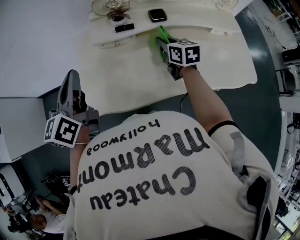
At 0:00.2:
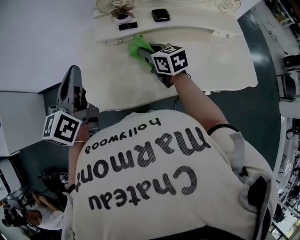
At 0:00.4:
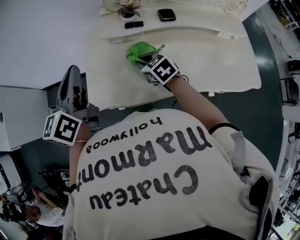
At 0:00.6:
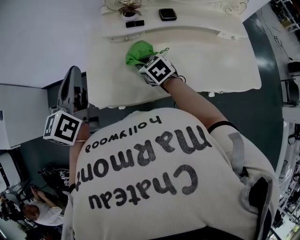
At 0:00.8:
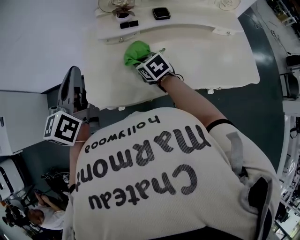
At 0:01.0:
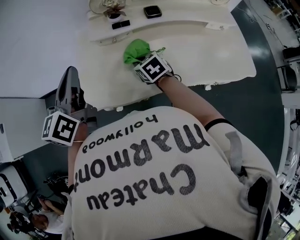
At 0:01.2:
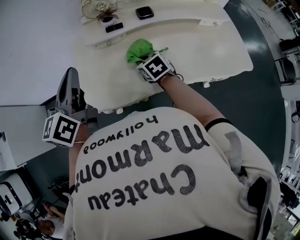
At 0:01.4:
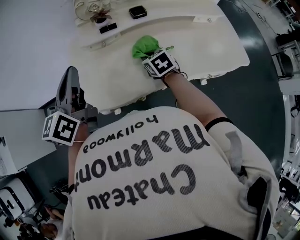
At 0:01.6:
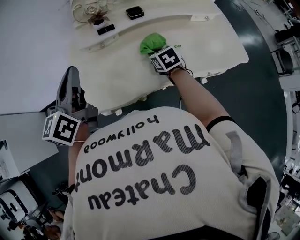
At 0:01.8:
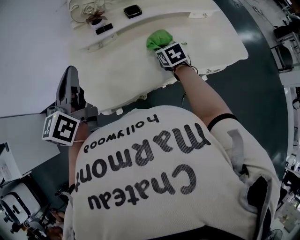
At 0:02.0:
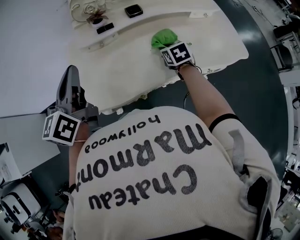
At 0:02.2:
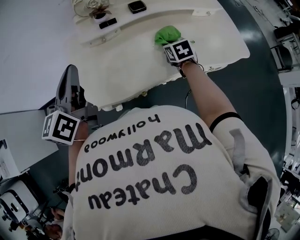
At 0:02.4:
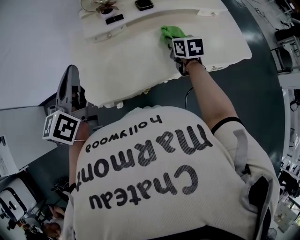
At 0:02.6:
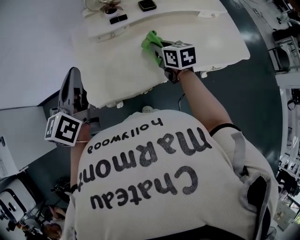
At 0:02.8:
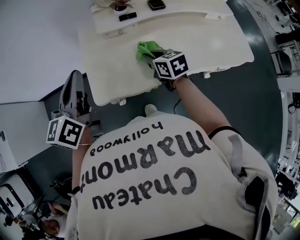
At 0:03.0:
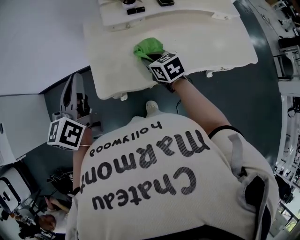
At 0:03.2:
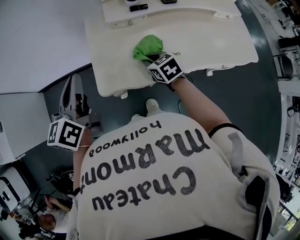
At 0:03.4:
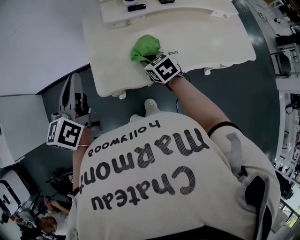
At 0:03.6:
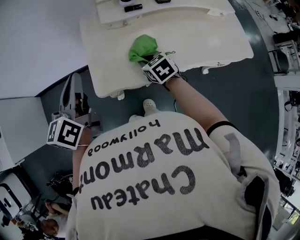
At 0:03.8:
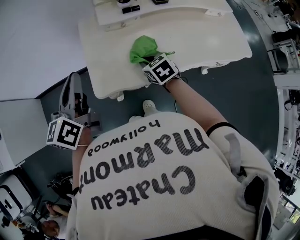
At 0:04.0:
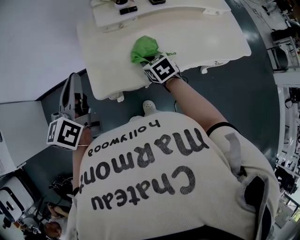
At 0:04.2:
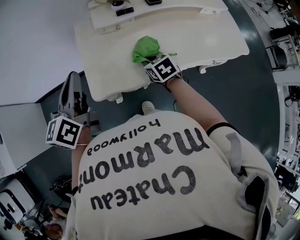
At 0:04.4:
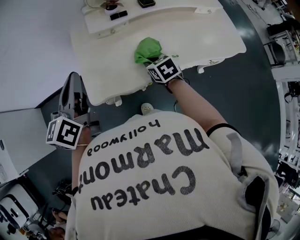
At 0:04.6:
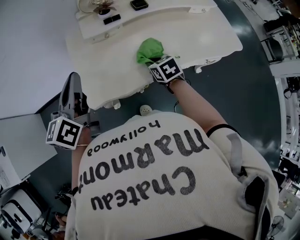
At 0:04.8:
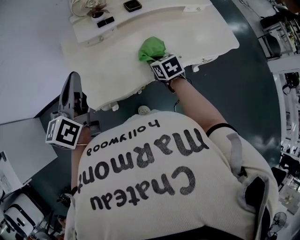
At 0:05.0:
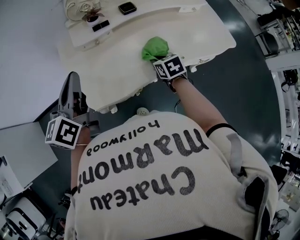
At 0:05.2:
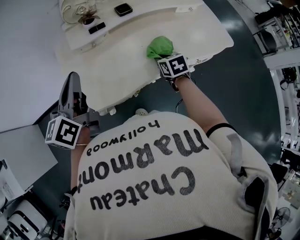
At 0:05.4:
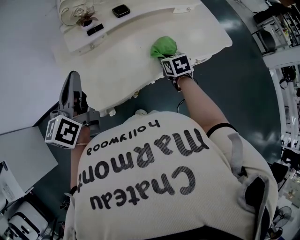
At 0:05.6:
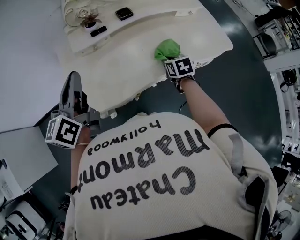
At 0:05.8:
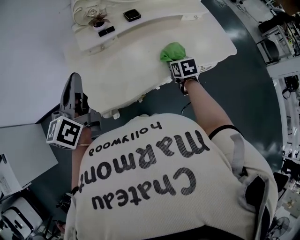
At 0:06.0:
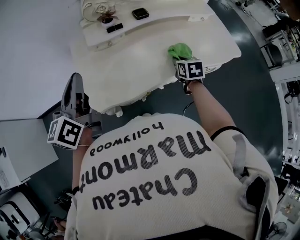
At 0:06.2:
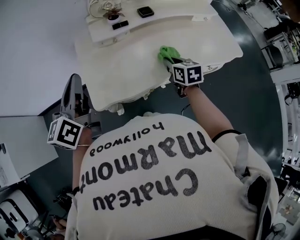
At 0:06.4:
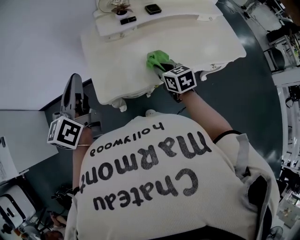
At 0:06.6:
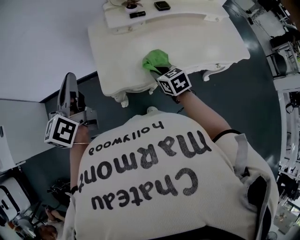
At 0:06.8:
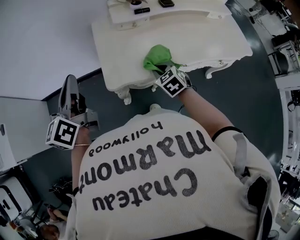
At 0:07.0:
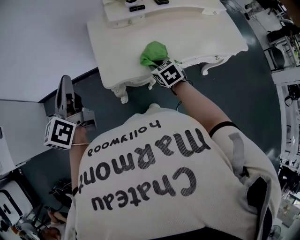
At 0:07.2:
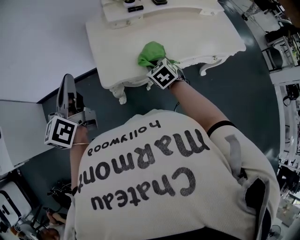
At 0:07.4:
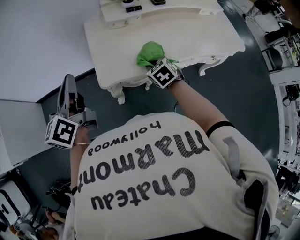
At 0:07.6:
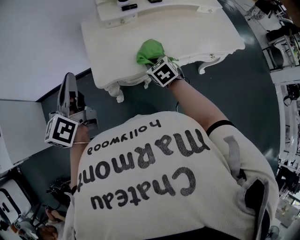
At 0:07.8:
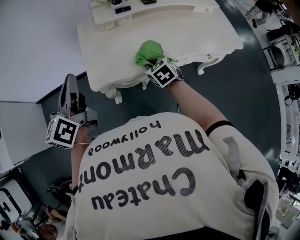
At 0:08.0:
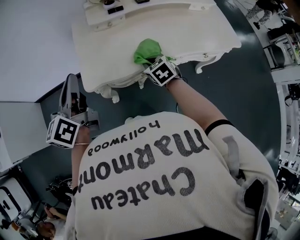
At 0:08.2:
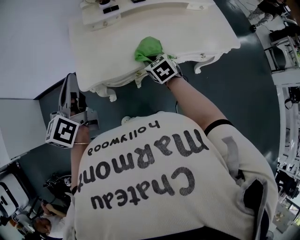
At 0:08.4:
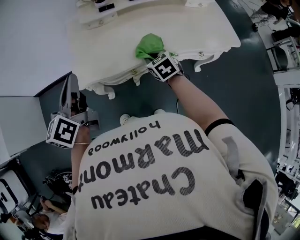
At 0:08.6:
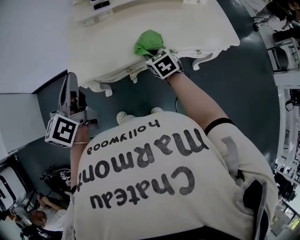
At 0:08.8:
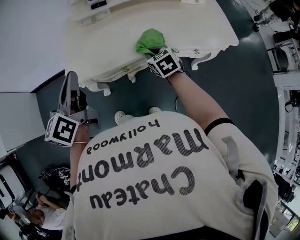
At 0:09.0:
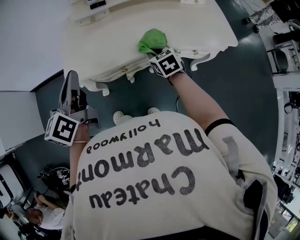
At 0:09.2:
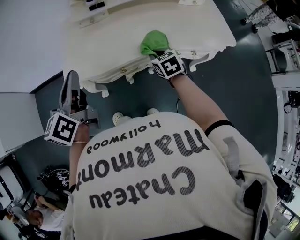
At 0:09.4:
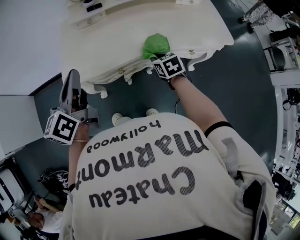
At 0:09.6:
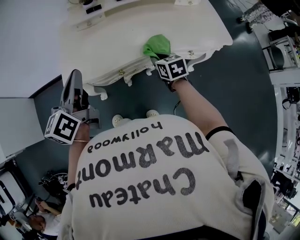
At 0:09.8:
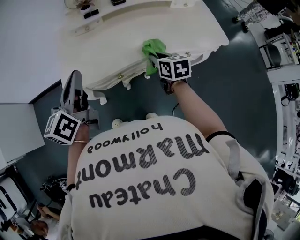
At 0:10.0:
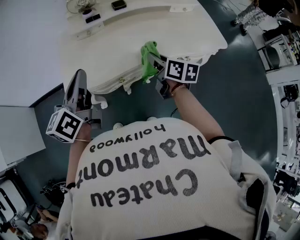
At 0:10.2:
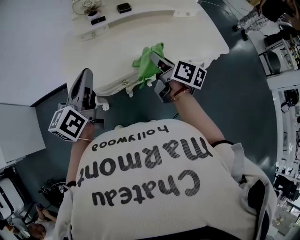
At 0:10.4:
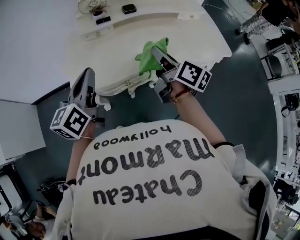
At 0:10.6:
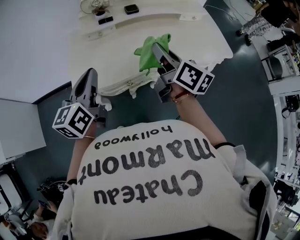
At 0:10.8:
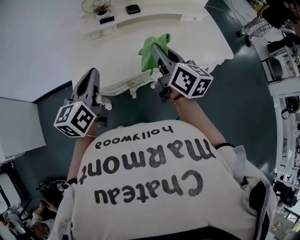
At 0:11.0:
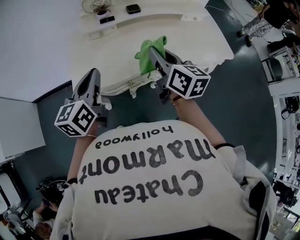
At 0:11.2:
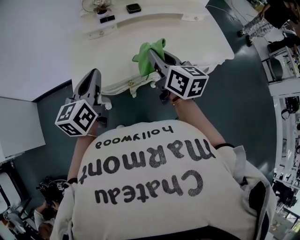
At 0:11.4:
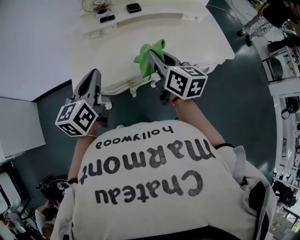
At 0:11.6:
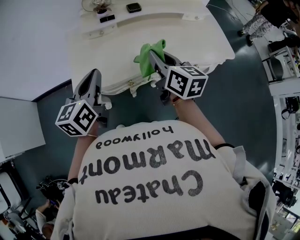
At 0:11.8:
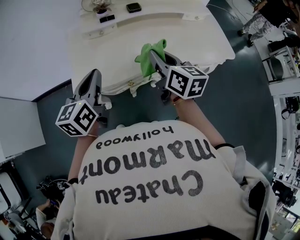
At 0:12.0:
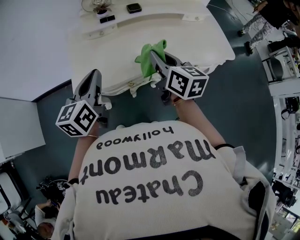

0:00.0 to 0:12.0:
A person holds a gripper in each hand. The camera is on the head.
0:00.0 to 0:01.6: The left gripper is displaced to the right by roughly 5 cm. The right gripper travels backward and downward by roughly 10 cm, reaches some 15 cm to the left, then returns, and turns by approximately 20 degrees.
0:01.6 to 0:03.0: Both grippers travel together to the left, some 15 cm.
0:03.0 to 0:04.4: The right gripper travels to the right by approximately 5 cm.
0:04.4 to 0:06.0: The right gripper heads to the right, covering about 15 cm, and rotates roughly 30 degrees. Meanwhile the left gripper travels to the right and back again, some 10 cm each way.
0:06.0 to 0:07.6: The right gripper is displaced to the left by about 20 cm, and rotates roughly 30 degrees. The left gripper moves to the left and backward, approximately 15 cm.
0:07.6 to 0:09.0: The two grippers go roughly 15 cm to the right.
0:09.0 to 0:10.4: The right gripper heads upward, covering roughly 20 cm, and points its fingers roughly 40 degrees further upward.
0:10.4 to 0:12.0: The right gripper turns by about 30 degrees.

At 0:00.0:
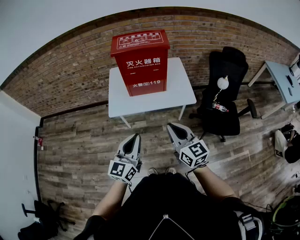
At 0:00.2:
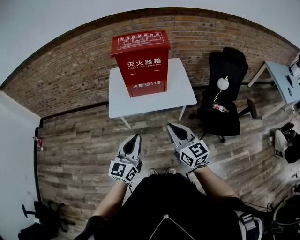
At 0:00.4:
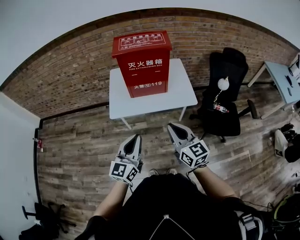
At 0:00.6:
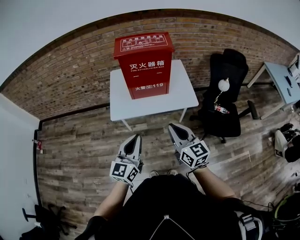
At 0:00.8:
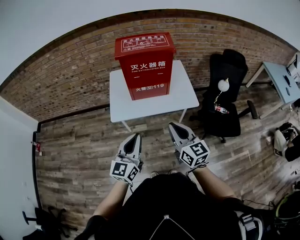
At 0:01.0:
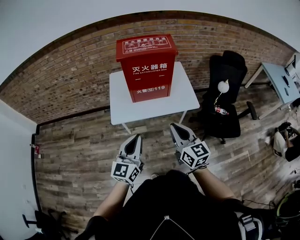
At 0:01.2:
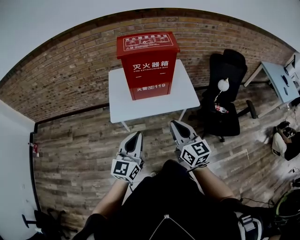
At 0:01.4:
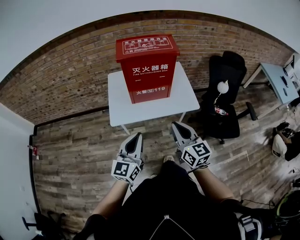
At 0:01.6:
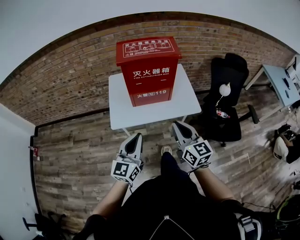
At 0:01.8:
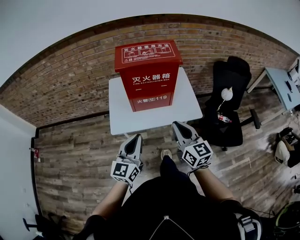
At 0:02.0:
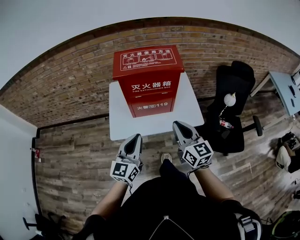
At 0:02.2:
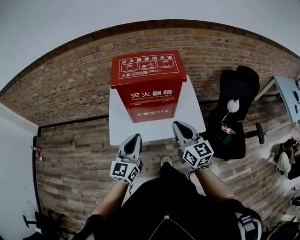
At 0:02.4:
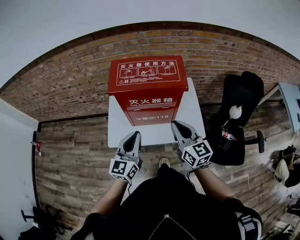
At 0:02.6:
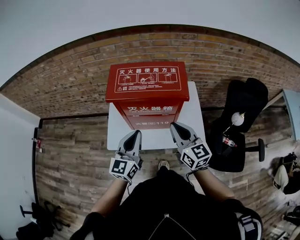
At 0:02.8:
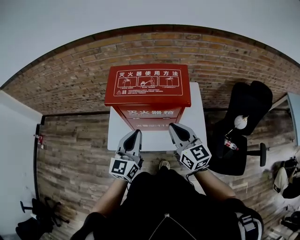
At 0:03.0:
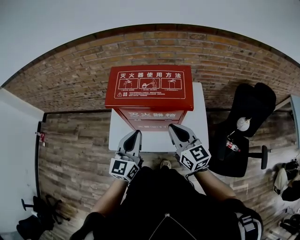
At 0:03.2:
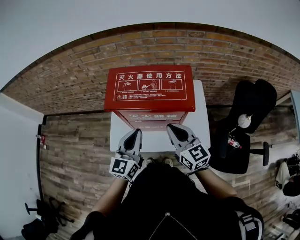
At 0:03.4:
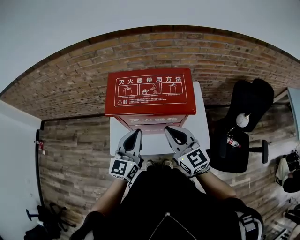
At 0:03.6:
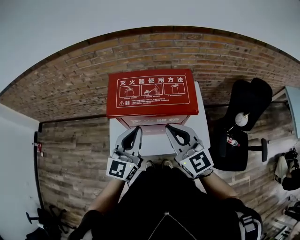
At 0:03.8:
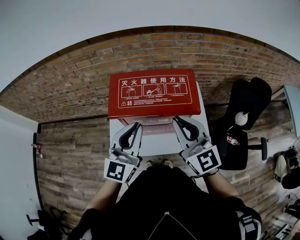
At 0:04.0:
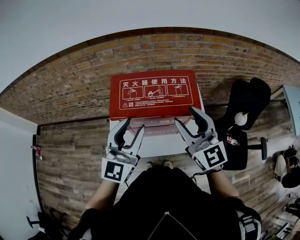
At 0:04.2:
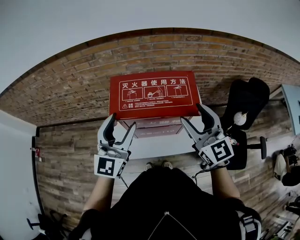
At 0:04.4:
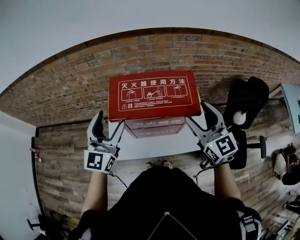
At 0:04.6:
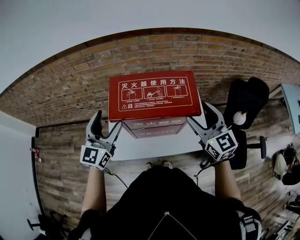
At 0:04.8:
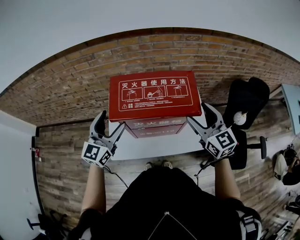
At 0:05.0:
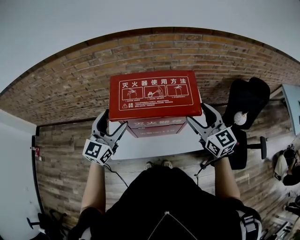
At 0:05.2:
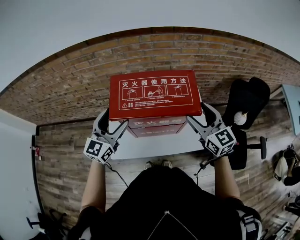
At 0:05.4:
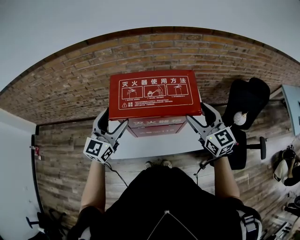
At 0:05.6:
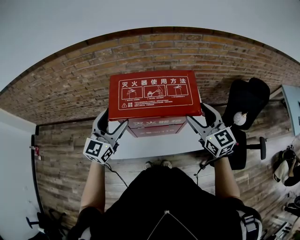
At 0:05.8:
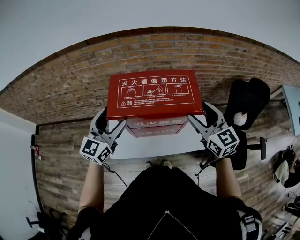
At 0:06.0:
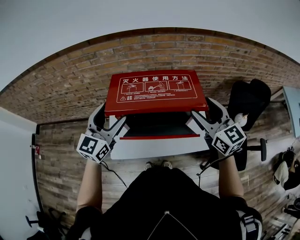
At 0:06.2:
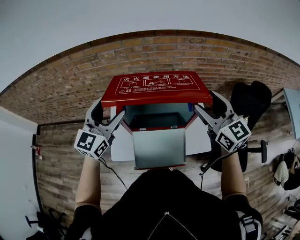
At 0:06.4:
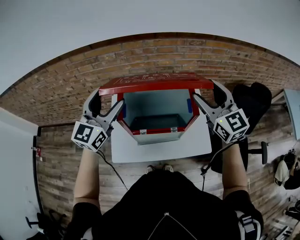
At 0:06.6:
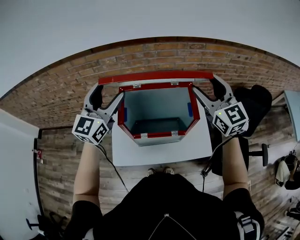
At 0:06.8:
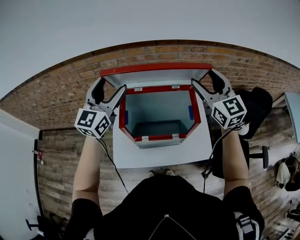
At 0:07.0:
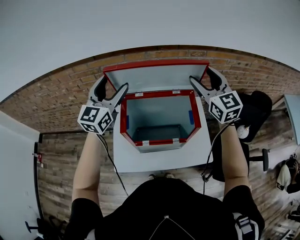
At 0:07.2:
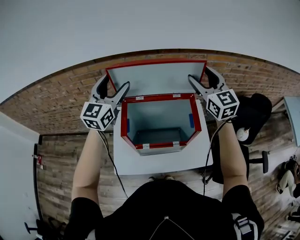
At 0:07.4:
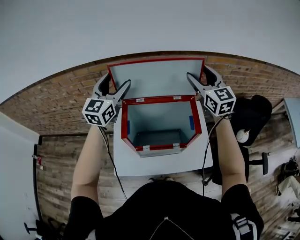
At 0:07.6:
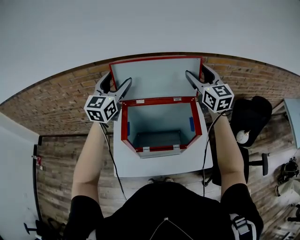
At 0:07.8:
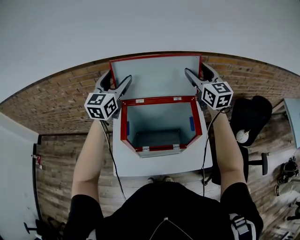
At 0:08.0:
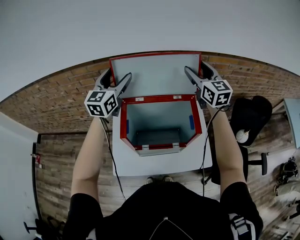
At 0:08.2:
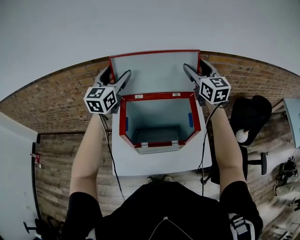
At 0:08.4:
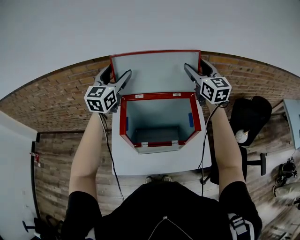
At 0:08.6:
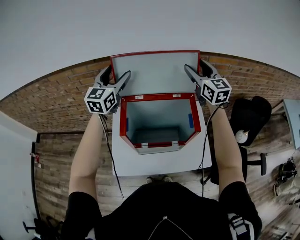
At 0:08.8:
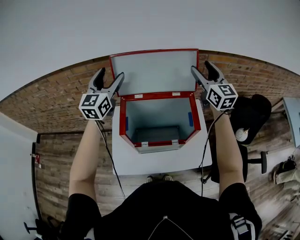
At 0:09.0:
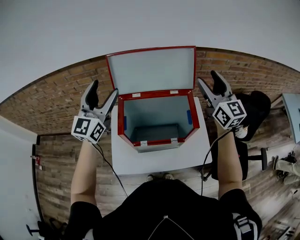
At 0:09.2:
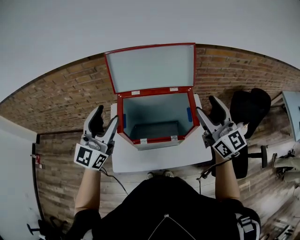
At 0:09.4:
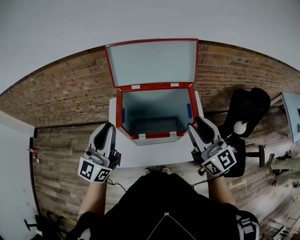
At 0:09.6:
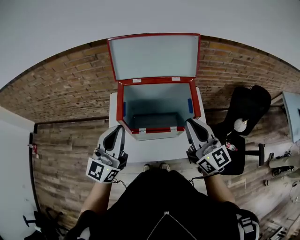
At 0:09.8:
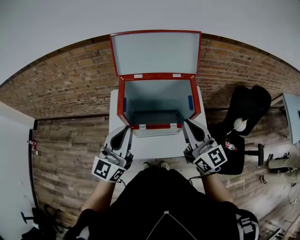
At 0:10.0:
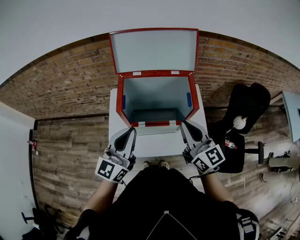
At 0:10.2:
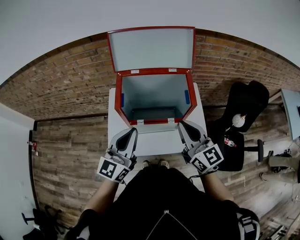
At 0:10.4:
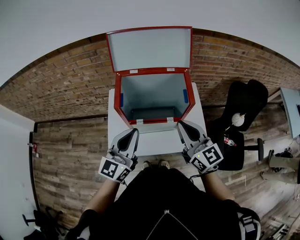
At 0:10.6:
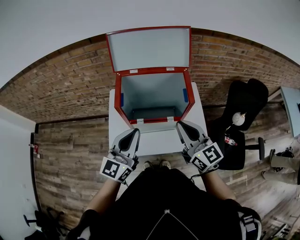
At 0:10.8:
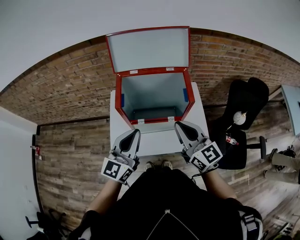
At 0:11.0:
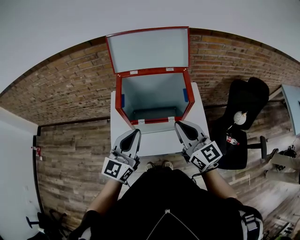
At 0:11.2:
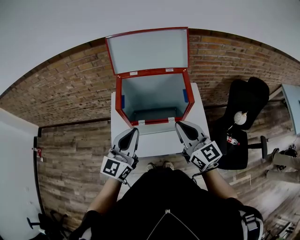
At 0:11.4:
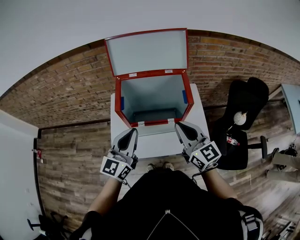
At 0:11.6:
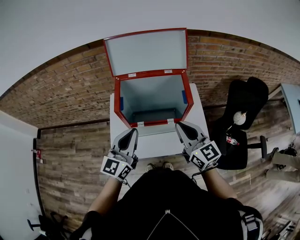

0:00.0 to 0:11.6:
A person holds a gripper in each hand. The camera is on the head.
0:00.0 to 0:01.4: The grippers both shift forward and to the left by roughly 10 cm.
0:01.4 to 0:02.8: The two grippers go roughly 30 cm forward.
0:02.8 to 0:04.4: The left gripper is displaced forward, to the left and upward by approximately 20 cm, and opens. Meanwhile the right gripper is displaced upward and forward by some 10 cm, and opens up.
0:05.8 to 0:07.2: The two grippers go about 25 cm forward and upward.
0:07.2 to 0:08.8: The right gripper moves some 5 cm.
0:08.8 to 0:10.2: The two grippers go about 30 cm backward. The right gripper closes up, while the left gripper closes its fingers.
0:10.2 to 0:11.6: There are only small adjustments of the grippers.
